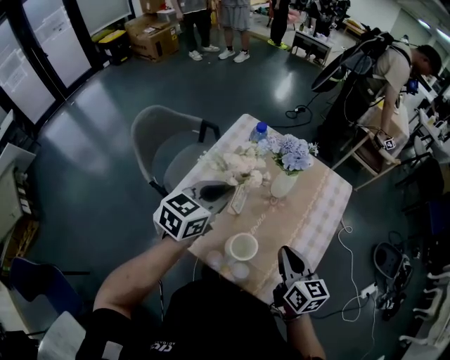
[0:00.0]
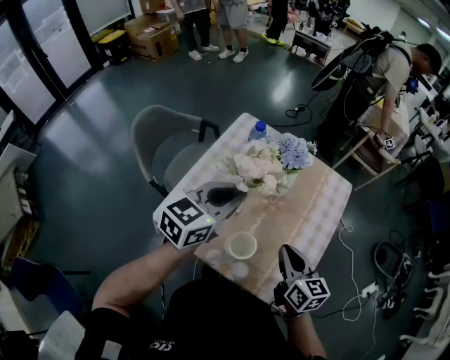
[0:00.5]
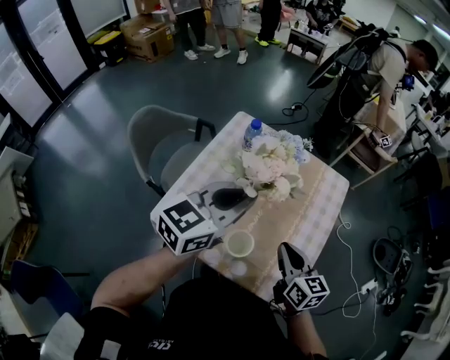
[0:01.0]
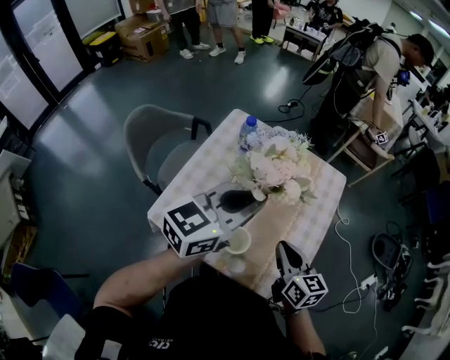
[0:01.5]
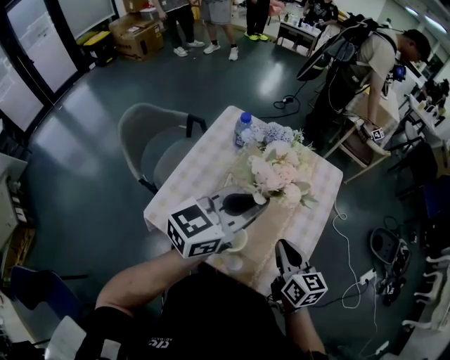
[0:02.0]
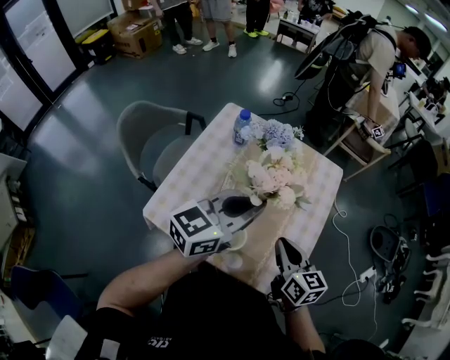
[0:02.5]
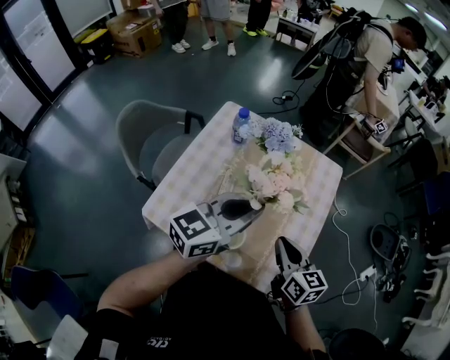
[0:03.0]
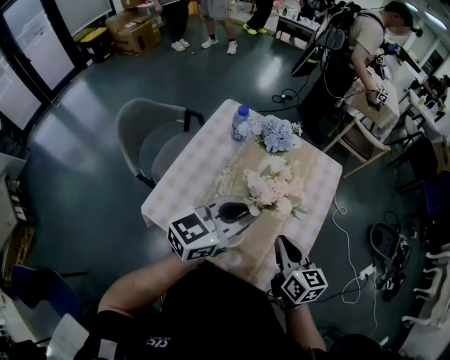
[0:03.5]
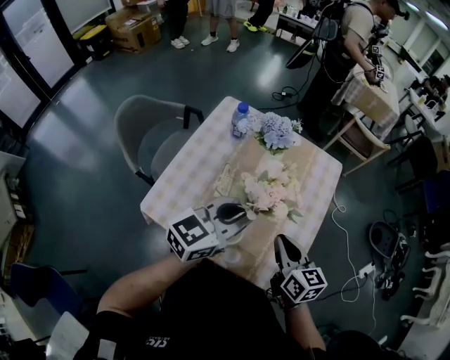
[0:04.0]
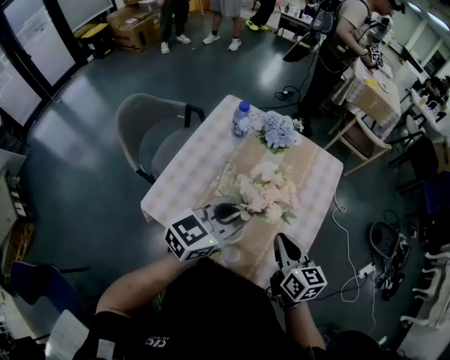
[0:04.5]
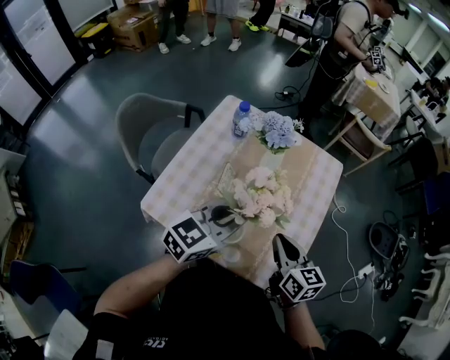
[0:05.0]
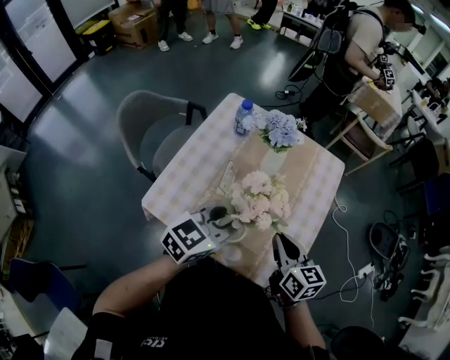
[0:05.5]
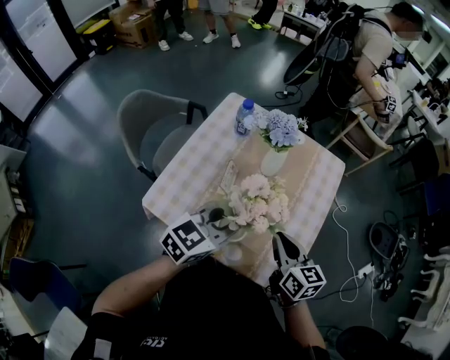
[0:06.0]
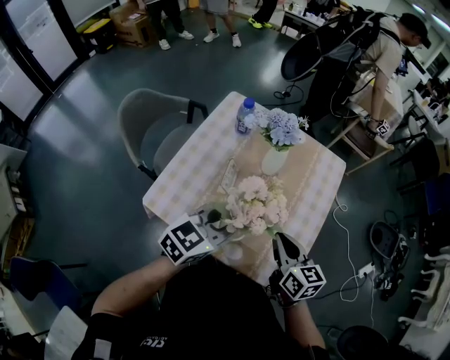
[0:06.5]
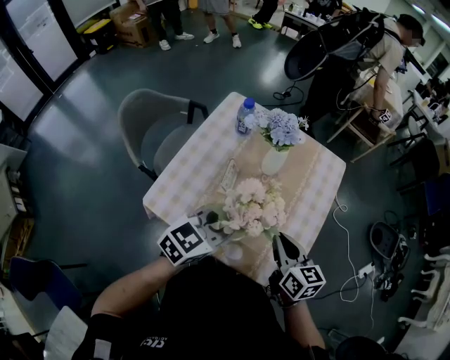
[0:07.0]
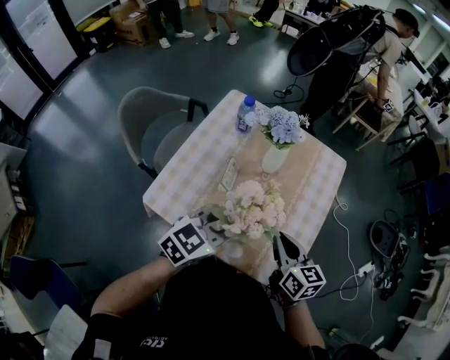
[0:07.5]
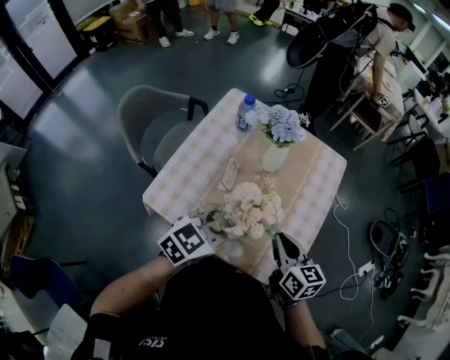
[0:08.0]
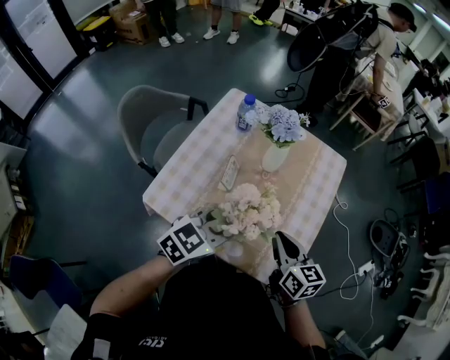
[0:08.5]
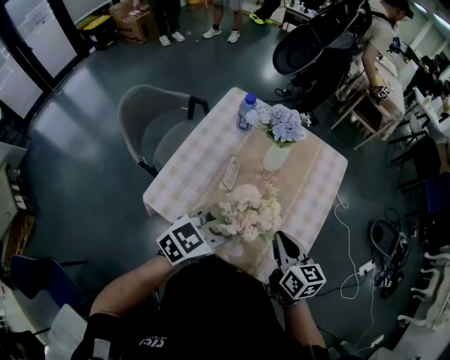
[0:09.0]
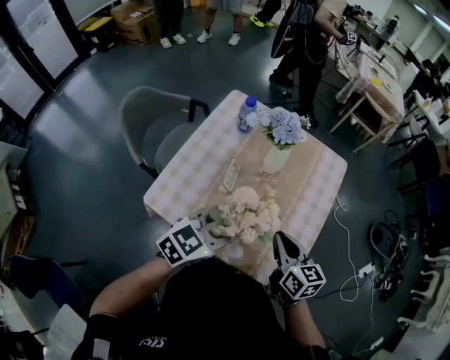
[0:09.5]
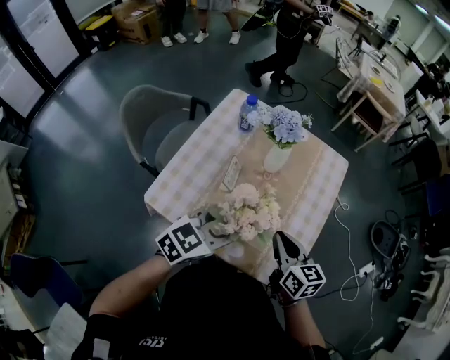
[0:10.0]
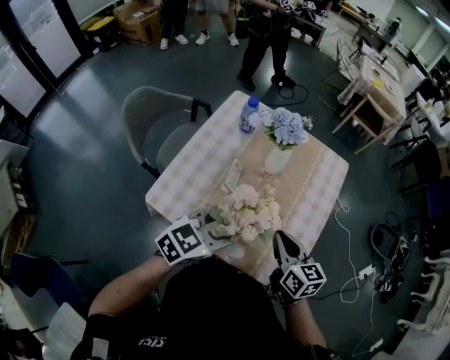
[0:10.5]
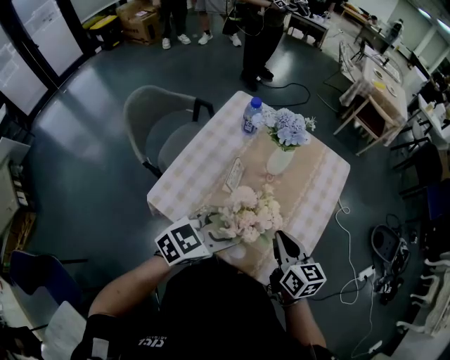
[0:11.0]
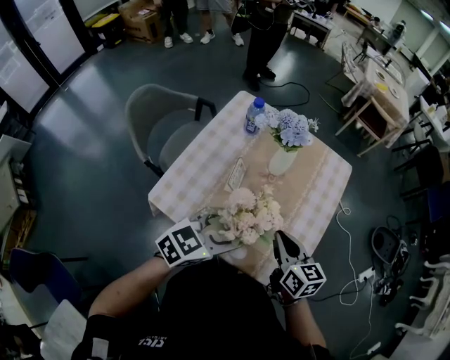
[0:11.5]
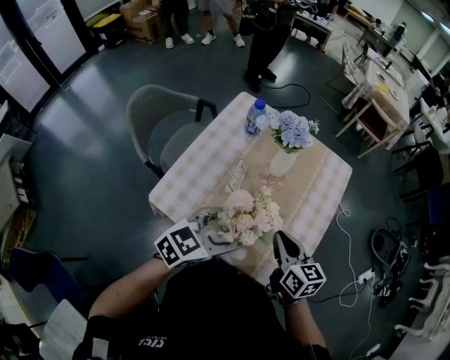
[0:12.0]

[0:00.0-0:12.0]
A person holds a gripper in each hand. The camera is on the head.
0:00.0 to 0:02.0: The left gripper travels to the right and upward by some 15 cm, and turns by roughly 20 degrees.
0:02.0 to 0:04.0: The left gripper goes approximately 5 cm downward.
0:04.0 to 0:06.0: The left gripper goes roughly 5 cm downward.
0:06.0 to 0:08.0: The grippers stay close to where they were, moving slightly.
0:08.0 to 0:10.0: Neither gripper changes place.
0:10.0 to 0:12.0: The left gripper opens.

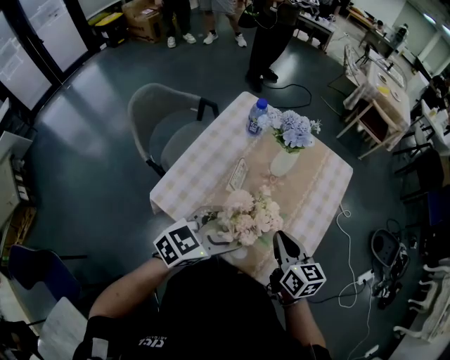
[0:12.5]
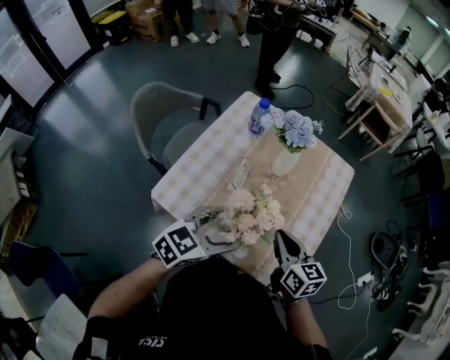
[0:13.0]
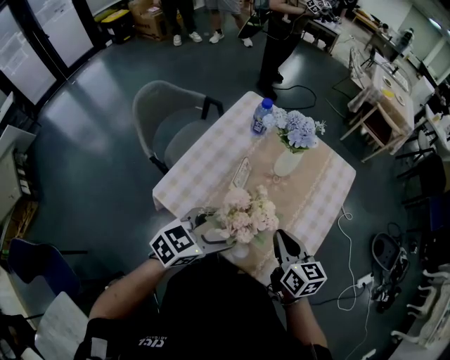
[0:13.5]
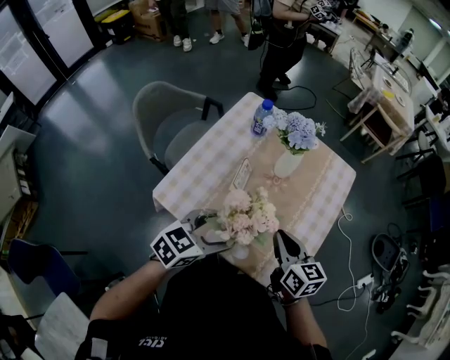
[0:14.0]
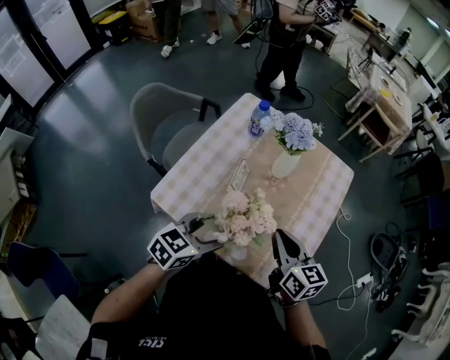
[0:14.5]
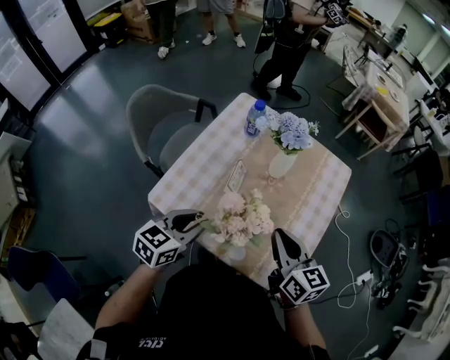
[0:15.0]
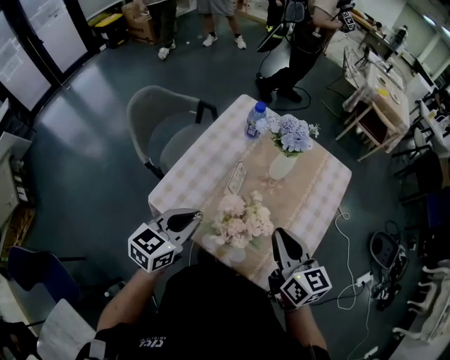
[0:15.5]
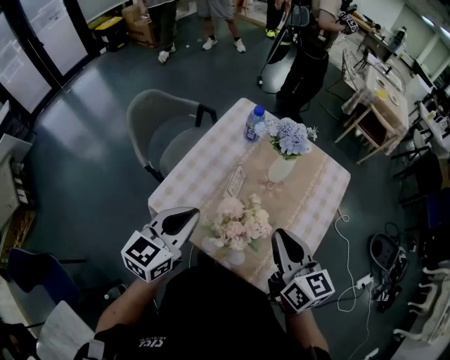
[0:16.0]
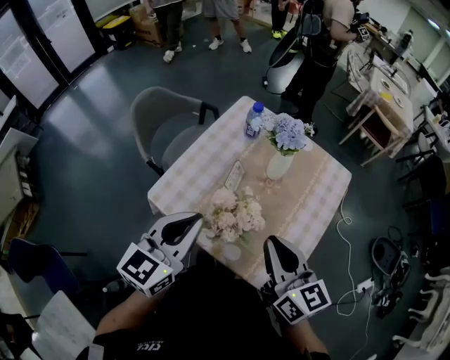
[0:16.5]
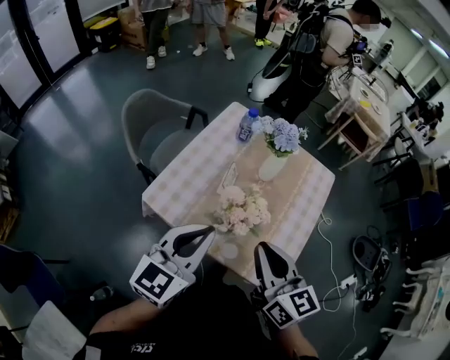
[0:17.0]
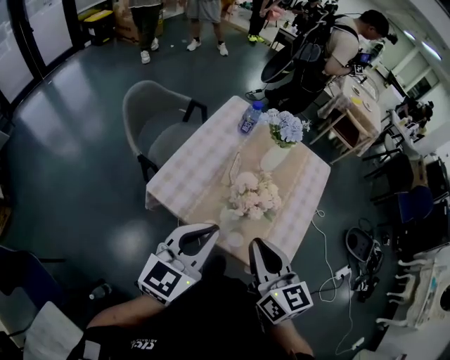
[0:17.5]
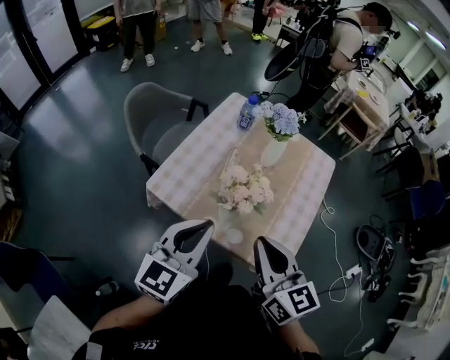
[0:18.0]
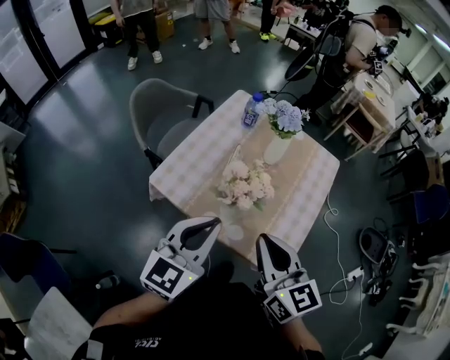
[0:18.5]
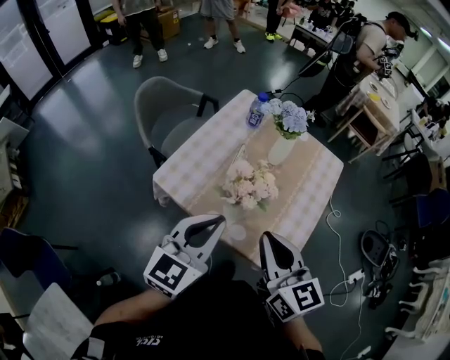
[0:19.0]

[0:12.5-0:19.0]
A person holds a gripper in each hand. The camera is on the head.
0:12.5 to 0:14.5: The left gripper shifts by approximately 5 cm.
0:14.5 to 0:17.0: The right gripper goes some 15 cm upward, backward and to the left. Meanwhile the left gripper is displaced upward by about 15 cm, turns by roughly 30 degrees, and closes its fingers.

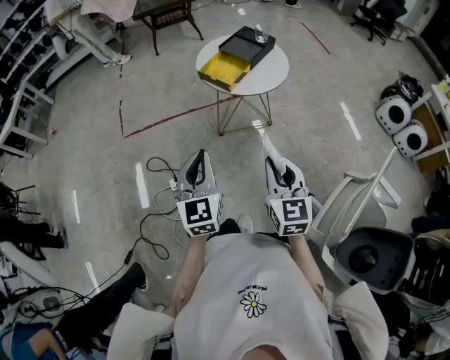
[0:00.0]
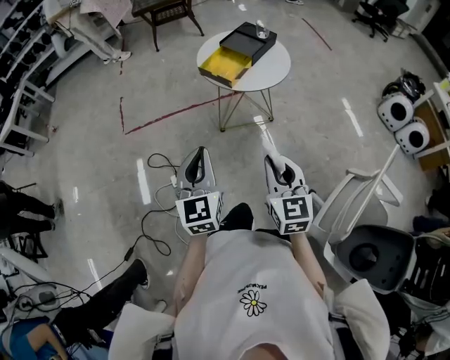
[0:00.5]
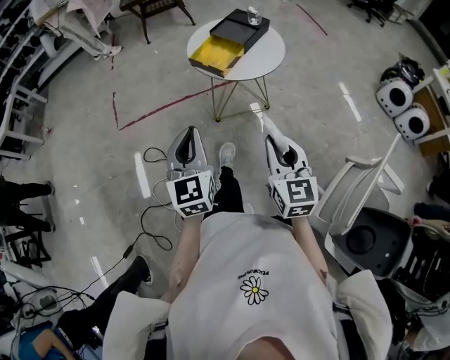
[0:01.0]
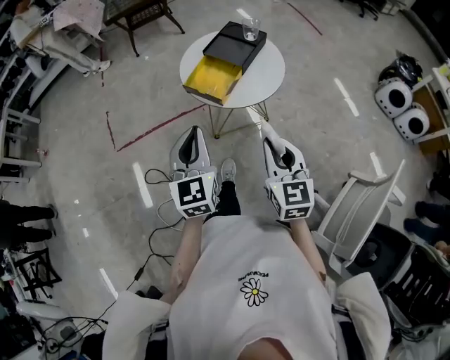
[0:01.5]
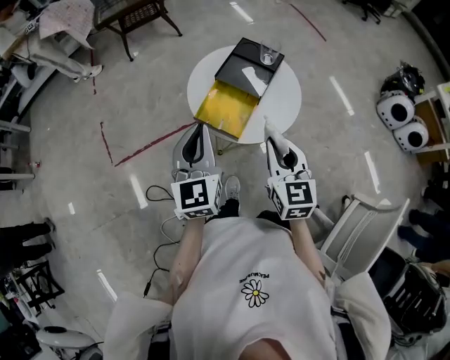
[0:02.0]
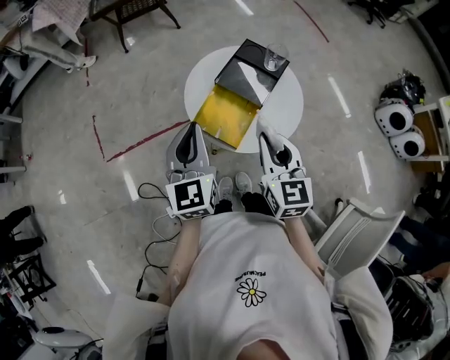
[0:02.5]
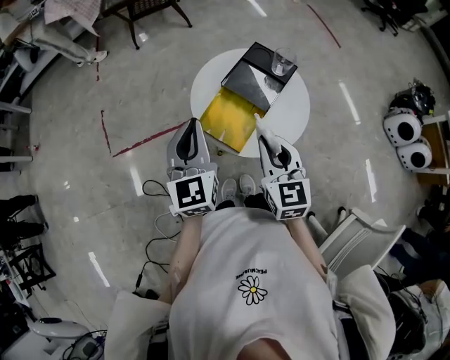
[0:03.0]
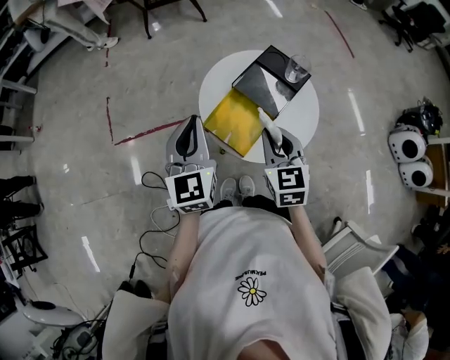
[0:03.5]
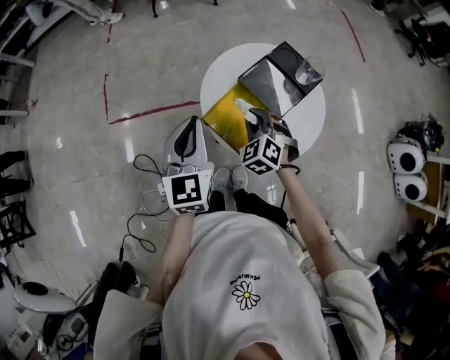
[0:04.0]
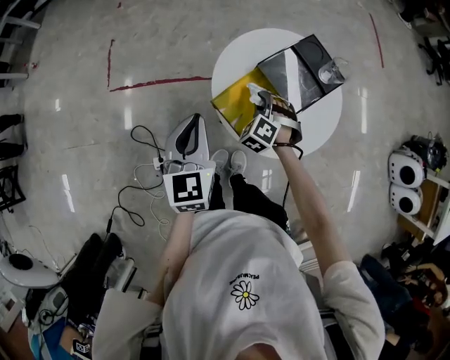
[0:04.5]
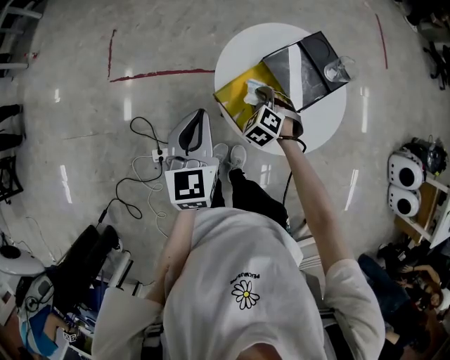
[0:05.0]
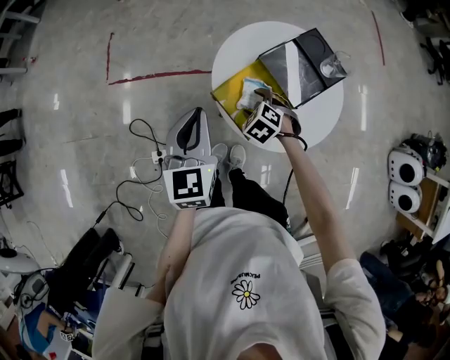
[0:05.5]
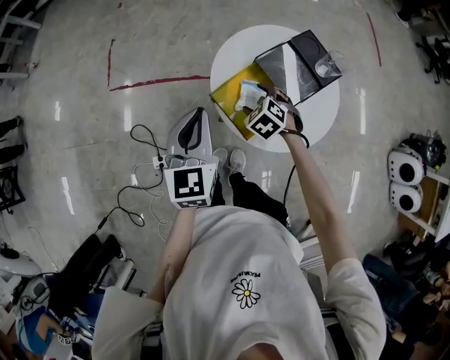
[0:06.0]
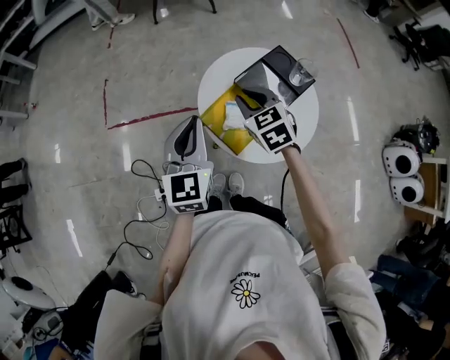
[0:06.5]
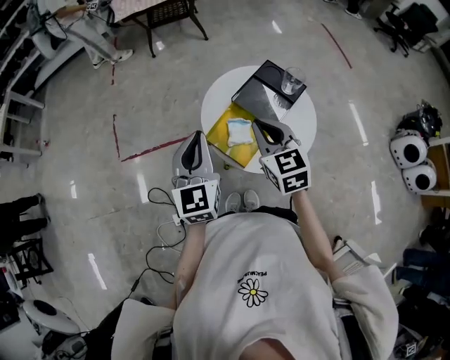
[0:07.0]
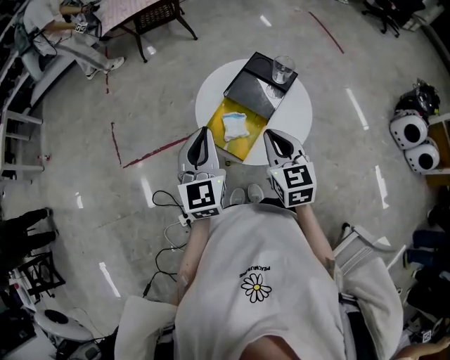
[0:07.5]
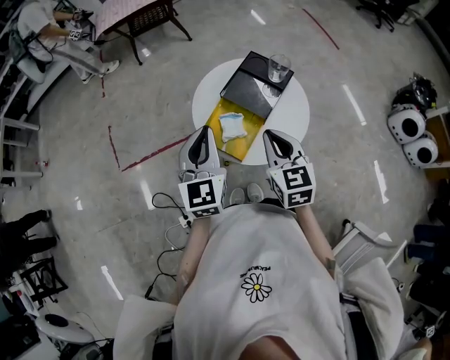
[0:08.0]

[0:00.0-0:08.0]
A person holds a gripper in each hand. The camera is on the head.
0:00.0 to 0:02.0: Both grippers move forward, approximately 35 cm.
0:02.0 to 0:04.0: The left gripper shifts approximately 10 cm forward; the right gripper is displaced forward and downward by approximately 25 cm, and rolls counterclockwise, seen from behind, by approximately 50 degrees.
0:04.0 to 0:06.0: The right gripper shifts roughly 10 cm downward, rotates approximately 20 degrees, and opens.
0:06.0 to 0:08.0: The left gripper is displaced to the right and upward by about 10 cm. The right gripper moves upward and backward, about 25 cm, tips its fingers upward by roughly 40 degrees, and closes its fingers.
